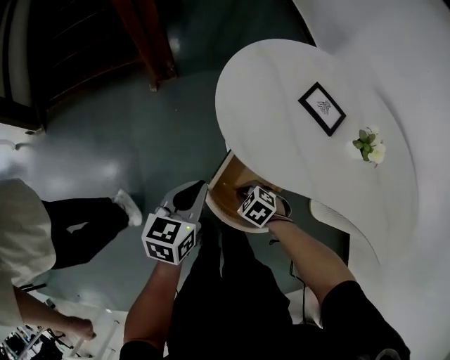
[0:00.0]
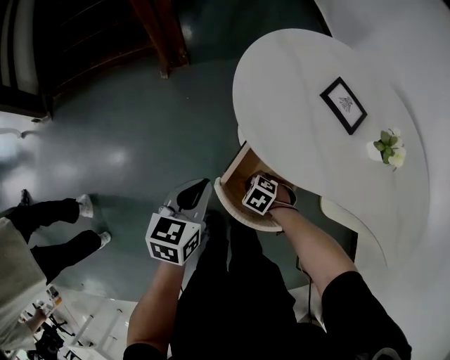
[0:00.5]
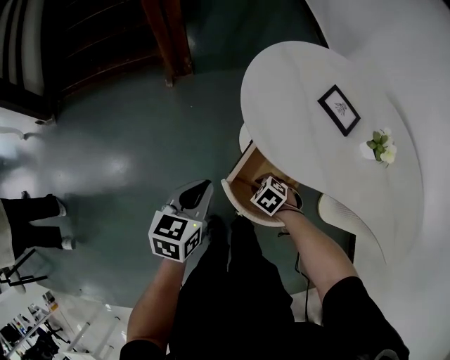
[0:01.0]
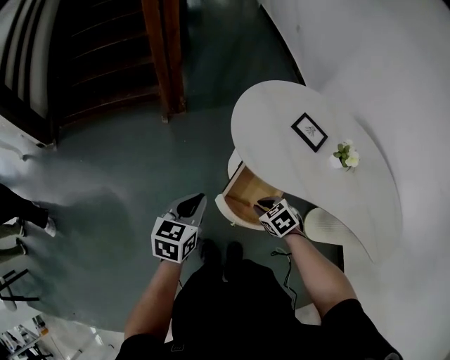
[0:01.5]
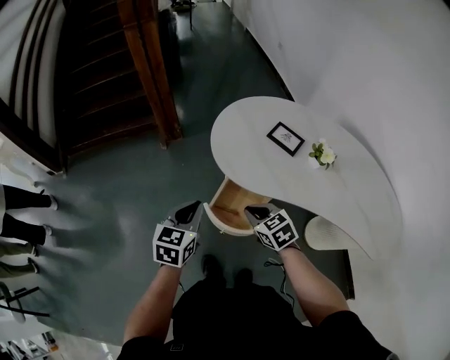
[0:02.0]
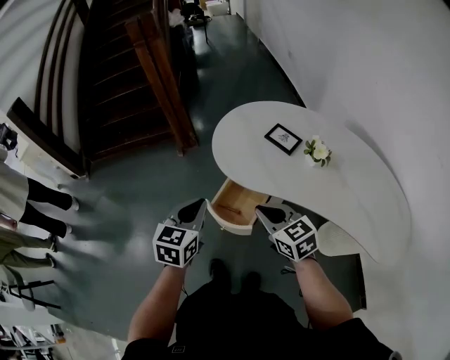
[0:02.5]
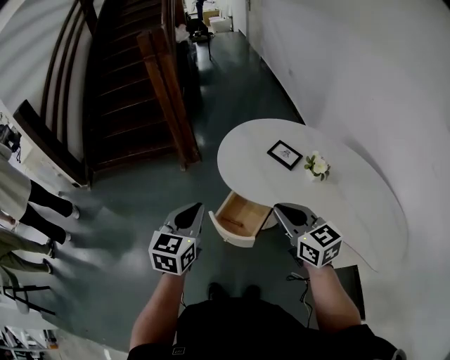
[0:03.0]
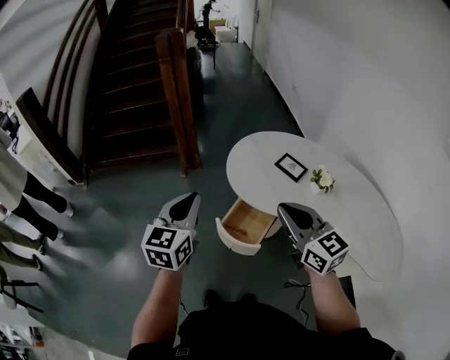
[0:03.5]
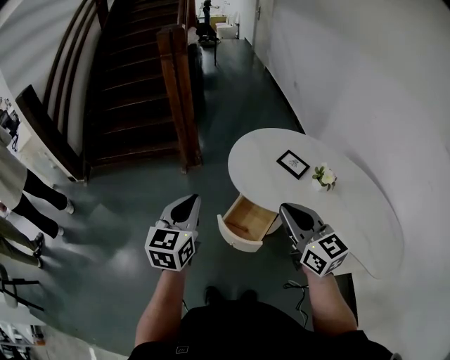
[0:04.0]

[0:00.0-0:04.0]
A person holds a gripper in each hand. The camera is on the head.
0.0 to 2.0 s: The left gripper goes roughly 10 cm upward. The right gripper heads upward, covering approximately 25 cm, and swivels roughly 40 degrees.
2.0 to 4.0 s: The right gripper moves upward, some 25 cm, and tilts its fingers some 40 degrees upward; the left gripper is displaced upward by roughly 15 cm, and swivels roughly 20 degrees.

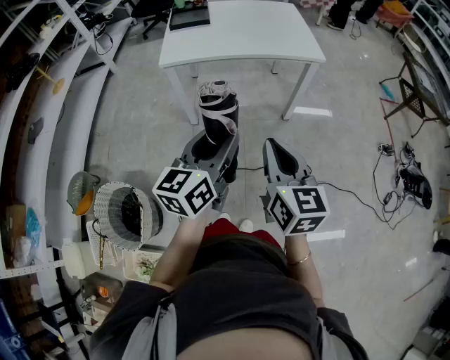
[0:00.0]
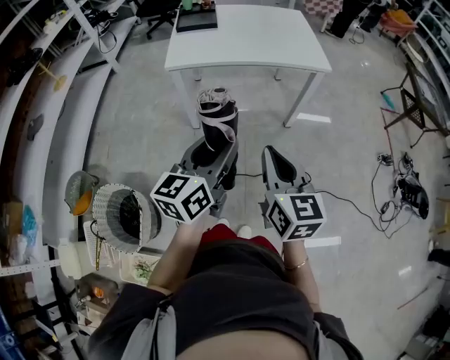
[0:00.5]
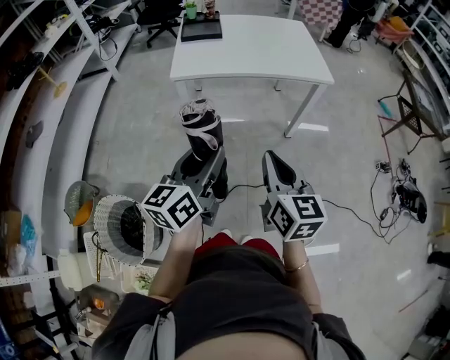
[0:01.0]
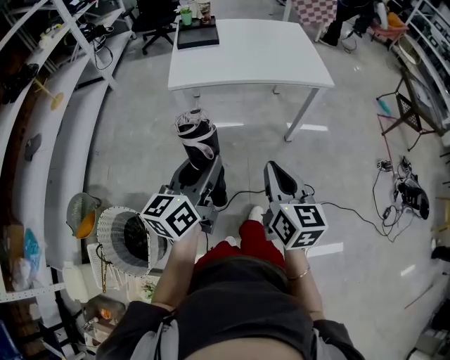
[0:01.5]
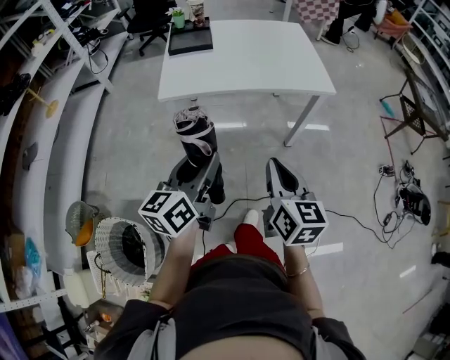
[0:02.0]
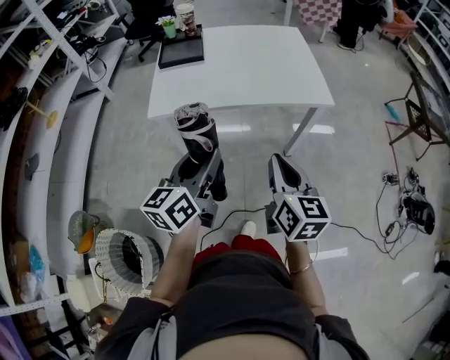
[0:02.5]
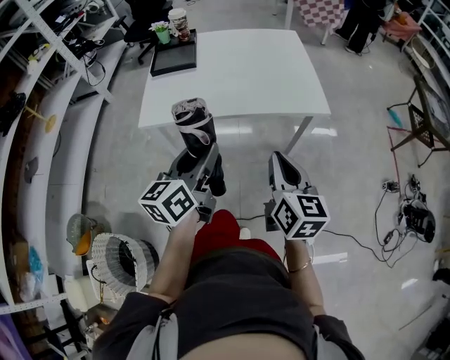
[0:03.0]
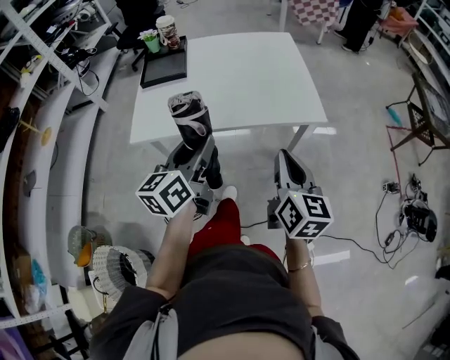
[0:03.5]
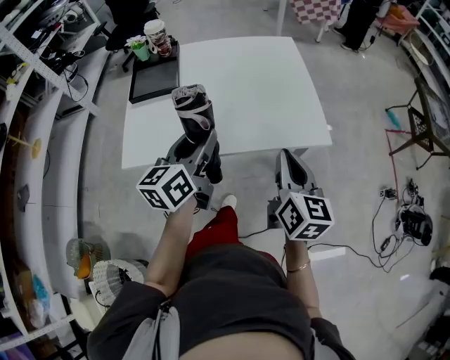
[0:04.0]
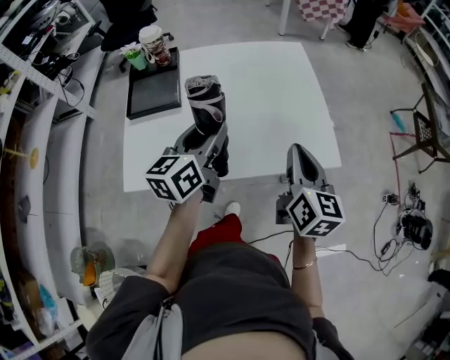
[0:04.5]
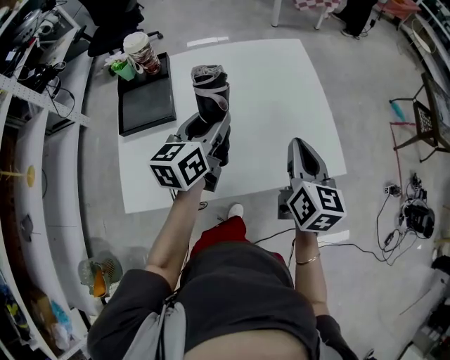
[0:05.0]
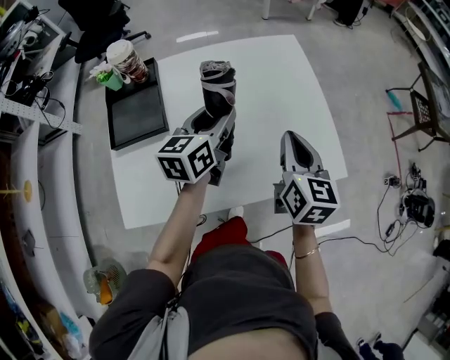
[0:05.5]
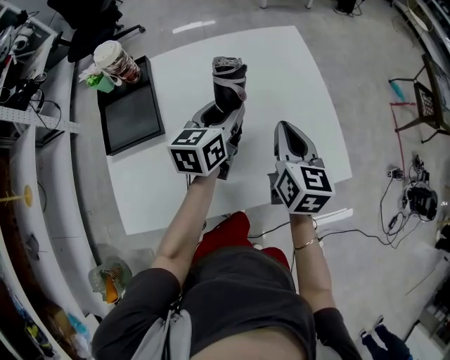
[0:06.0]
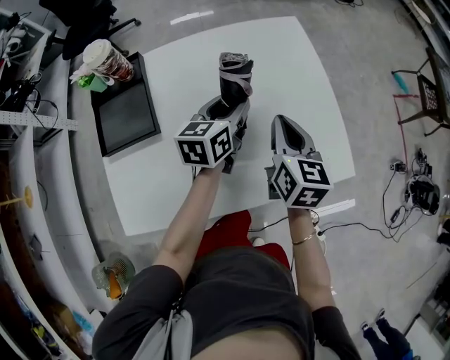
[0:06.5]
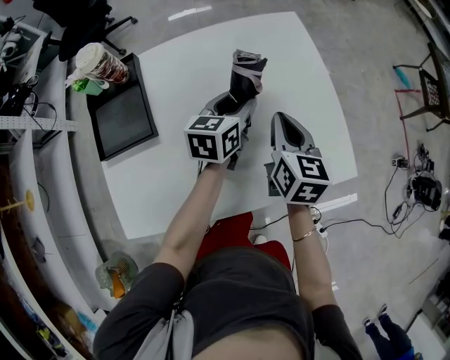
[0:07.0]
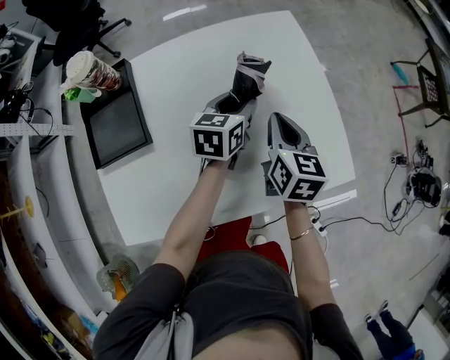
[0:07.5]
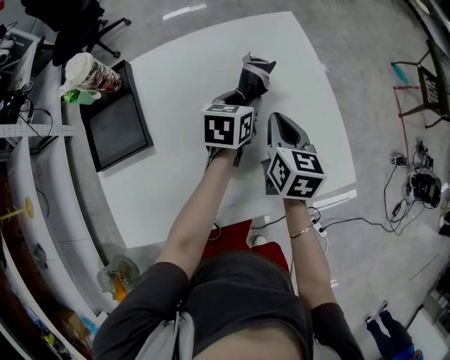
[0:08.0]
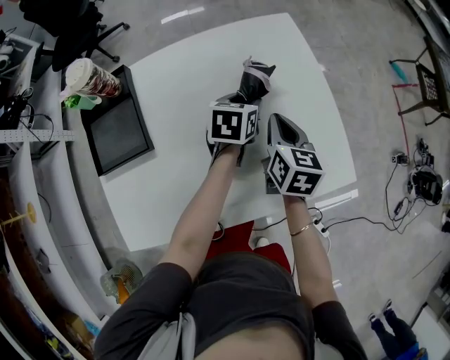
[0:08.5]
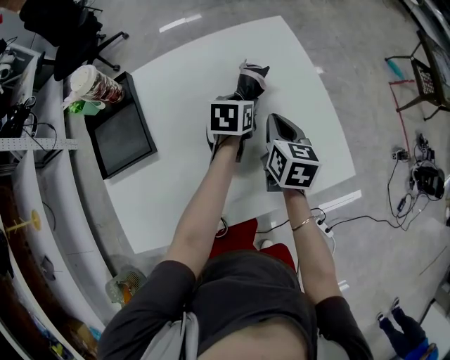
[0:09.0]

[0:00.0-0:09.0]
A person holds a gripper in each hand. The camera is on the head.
0.0 to 2.0 s: The left gripper is displaced forward and to the left by about 15 cm; the right gripper heads forward, covering about 15 cm.
2.0 to 4.5 s: The two grippers travel together, forward, roughly 50 cm.
4.5 to 7.0 s: Both grippers move forward and downward, about 25 cm. The left gripper rotates about 20 degrees.
7.0 to 9.0 s: The left gripper moves downward, approximately 5 cm; the right gripper moves roughly 5 cm.

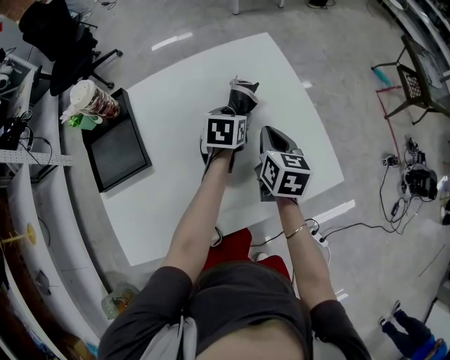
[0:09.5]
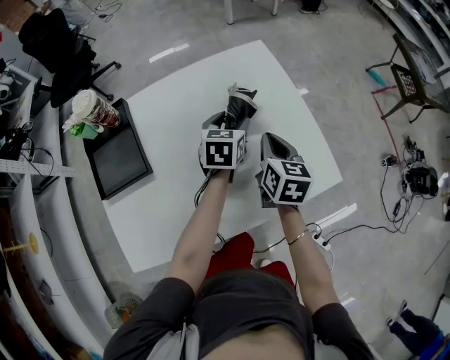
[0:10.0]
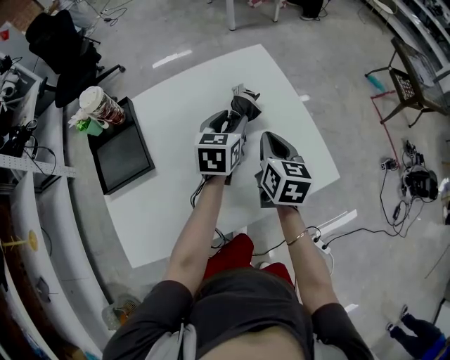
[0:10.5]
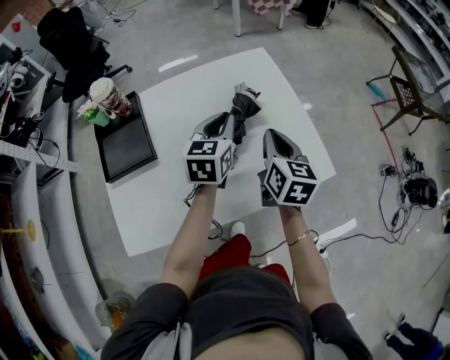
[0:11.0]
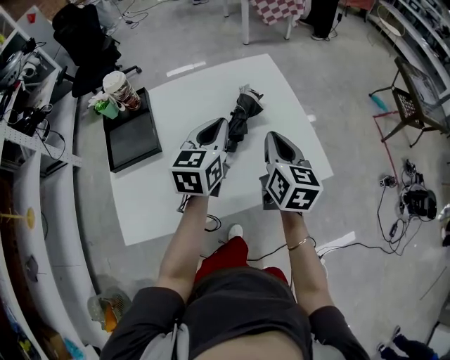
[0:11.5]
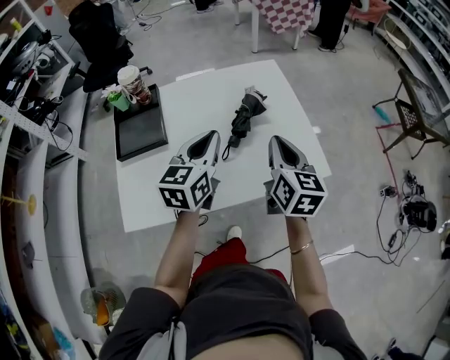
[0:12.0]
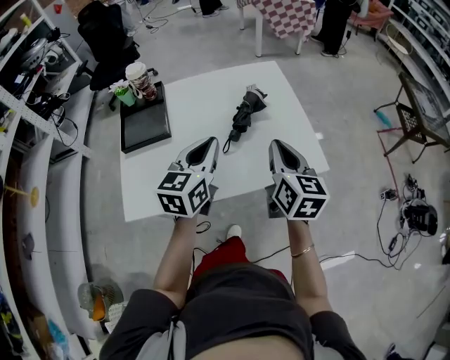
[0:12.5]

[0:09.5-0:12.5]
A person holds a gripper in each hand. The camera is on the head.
9.5 to 11.0 s: The left gripper shifts about 15 cm upward and backward, turns by approximately 30 degrees, and closes. The right gripper travels upward and backward by approximately 10 cm.
11.0 to 12.5 s: The right gripper is displaced backward and upward by some 15 cm; the left gripper moves backward, approximately 20 cm.

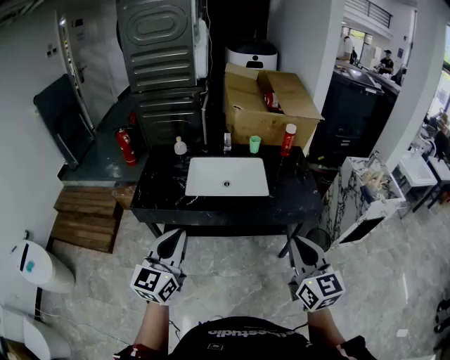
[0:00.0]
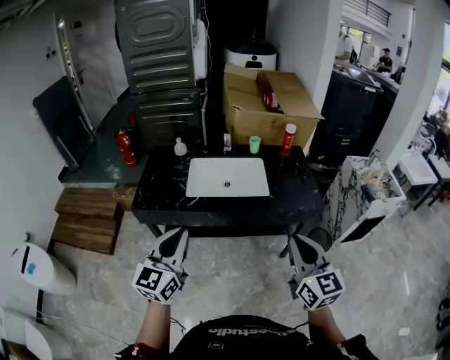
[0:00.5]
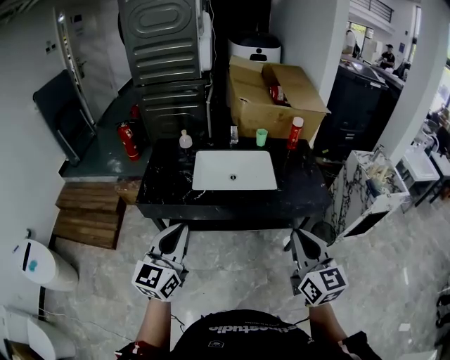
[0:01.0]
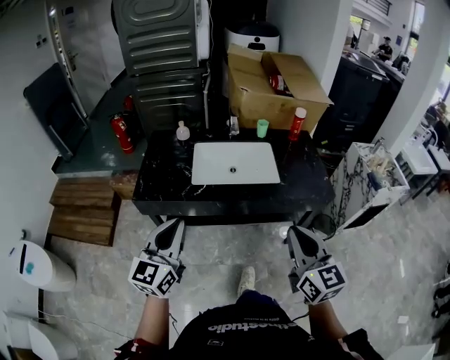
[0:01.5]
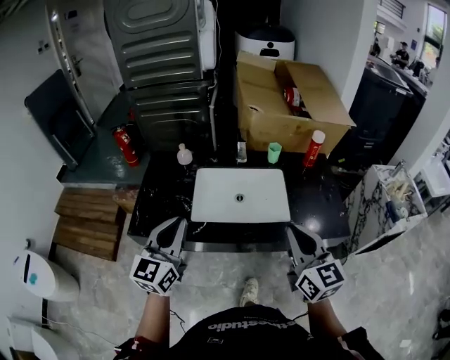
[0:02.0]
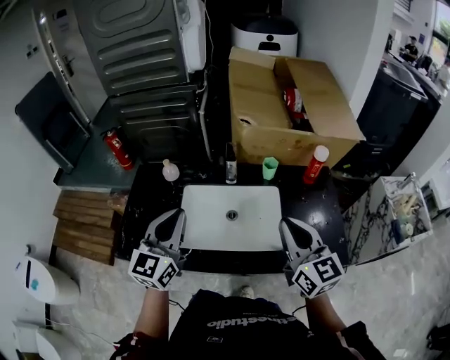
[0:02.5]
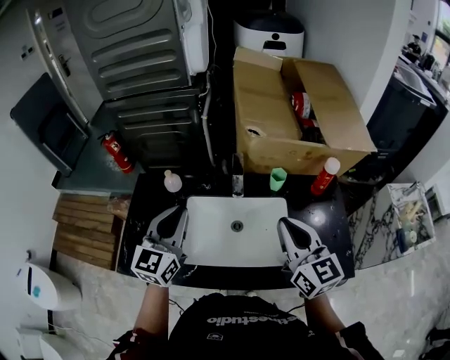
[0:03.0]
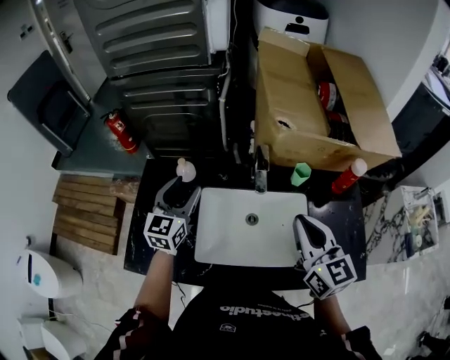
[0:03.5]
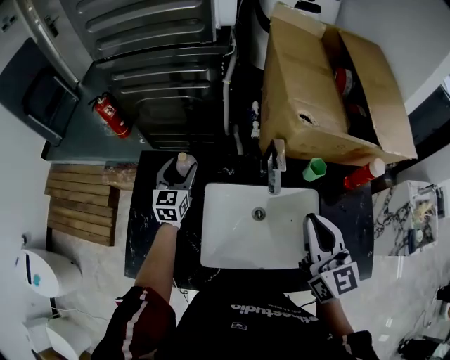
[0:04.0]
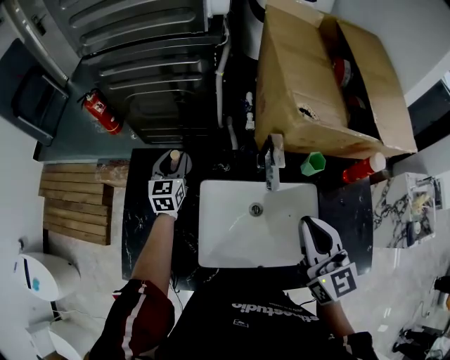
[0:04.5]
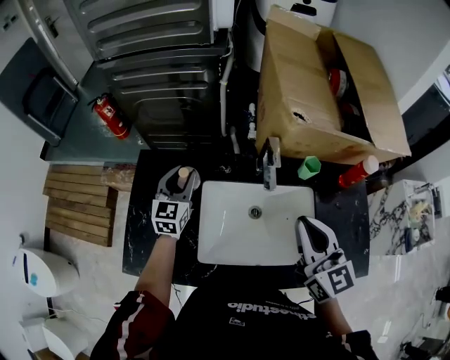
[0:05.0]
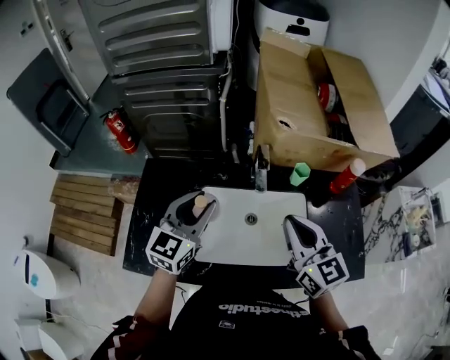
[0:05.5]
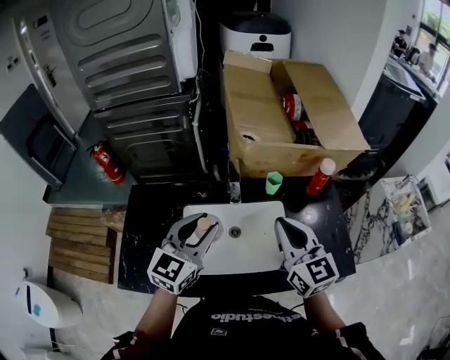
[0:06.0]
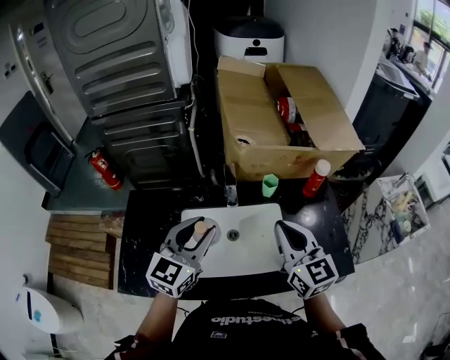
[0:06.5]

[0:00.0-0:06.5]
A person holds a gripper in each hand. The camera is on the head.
0.0 to 2.0 s: Both grippers move forward, approximately 25 cm.
2.0 to 4.5 s: The left gripper goes roughly 60 cm forward and downward, rotates some 20 degrees, and opens up; the right gripper is displaced forward by some 30 cm.
4.5 to 6.5 s: The right gripper goes roughly 10 cm to the right, backward and upward. Meanwhile the left gripper heads backward, upward and to the right, covering roughly 40 cm, and turns by roughly 30 degrees.

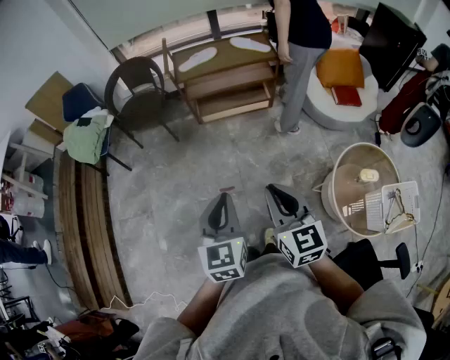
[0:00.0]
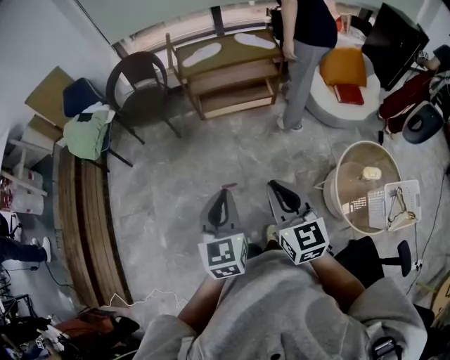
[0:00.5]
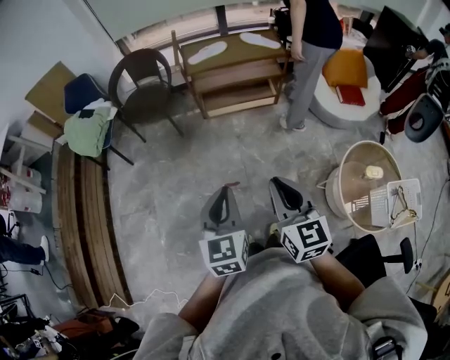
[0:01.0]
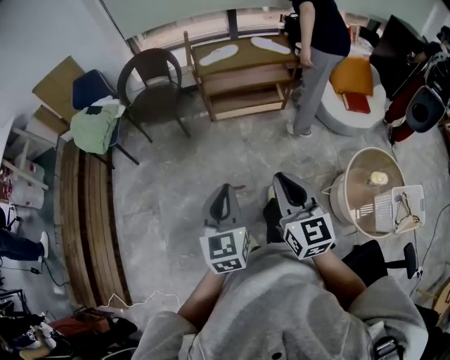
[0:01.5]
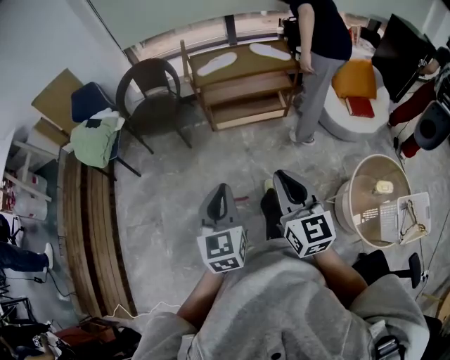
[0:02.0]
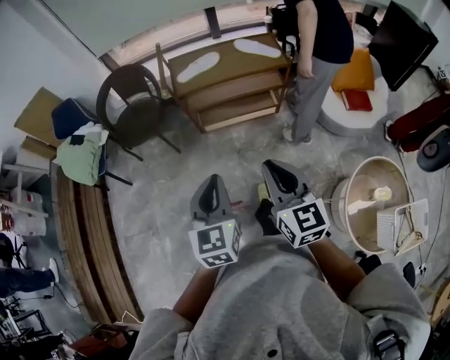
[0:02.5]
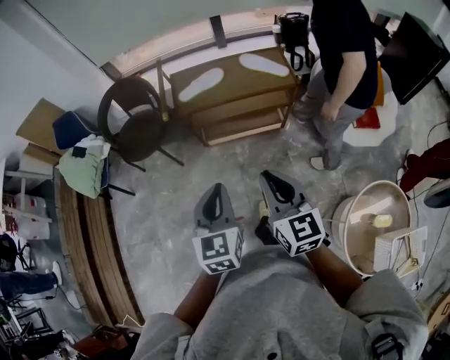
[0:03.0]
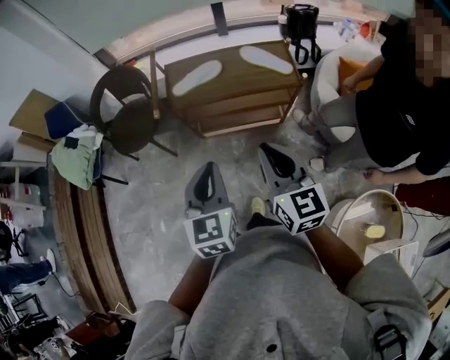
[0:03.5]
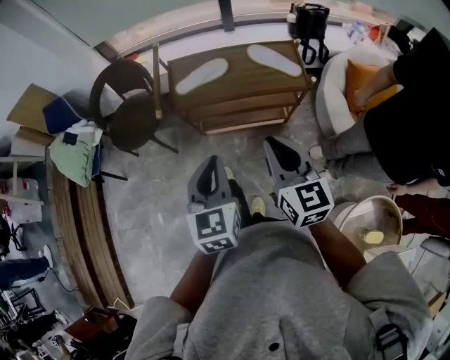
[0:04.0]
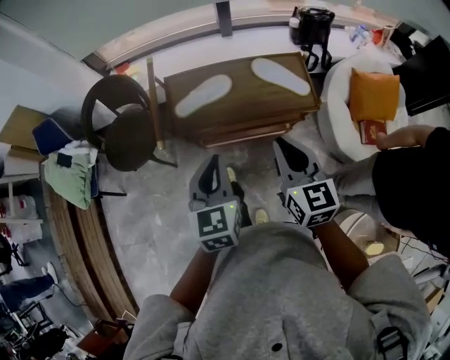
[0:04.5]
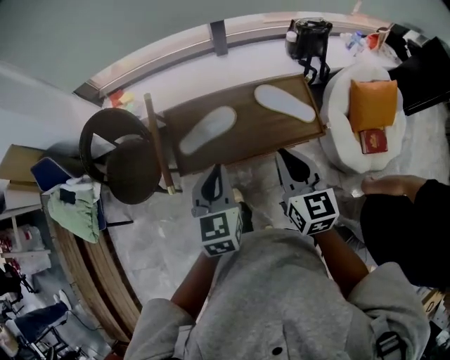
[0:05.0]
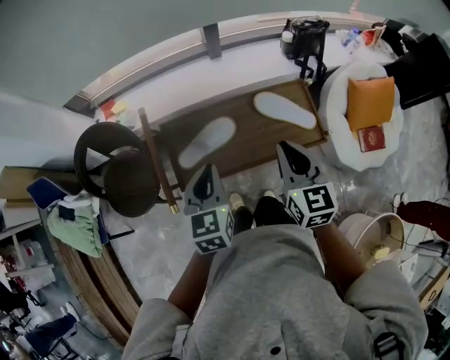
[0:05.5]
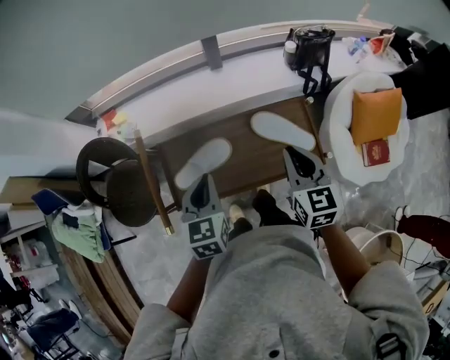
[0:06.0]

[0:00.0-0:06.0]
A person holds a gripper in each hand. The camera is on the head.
0.0 to 2.0 s: The left gripper travels to the left and forward by about 10 cm. Meanwhile the right gripper shifts roughly 10 cm forward and to the left.
2.0 to 4.0 s: Both grippers are carried forward, roughly 40 cm.
4.0 to 6.0 s: Both grippers travel together forward, some 40 cm.
